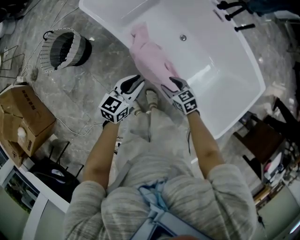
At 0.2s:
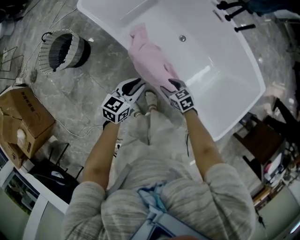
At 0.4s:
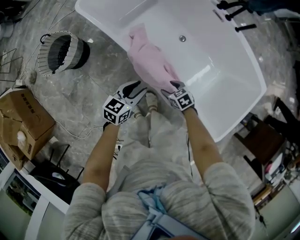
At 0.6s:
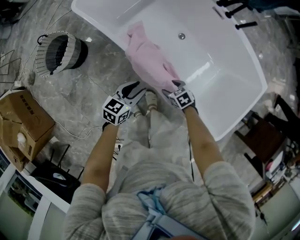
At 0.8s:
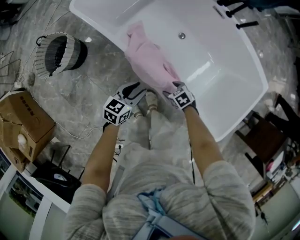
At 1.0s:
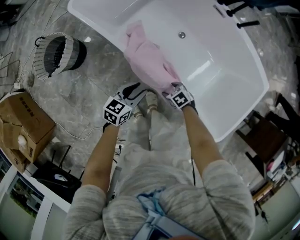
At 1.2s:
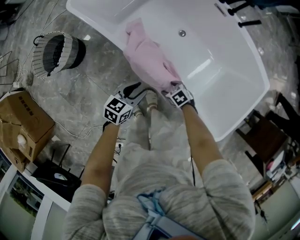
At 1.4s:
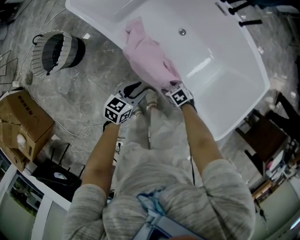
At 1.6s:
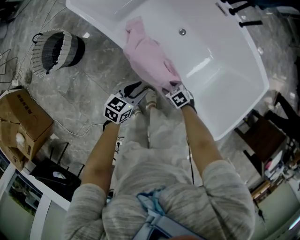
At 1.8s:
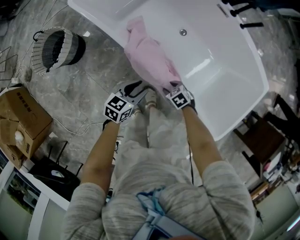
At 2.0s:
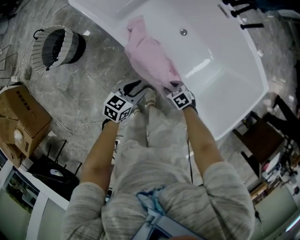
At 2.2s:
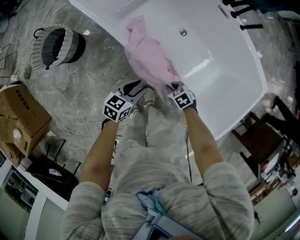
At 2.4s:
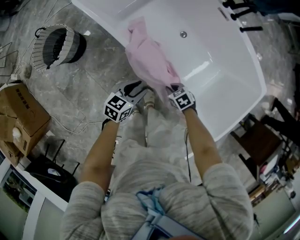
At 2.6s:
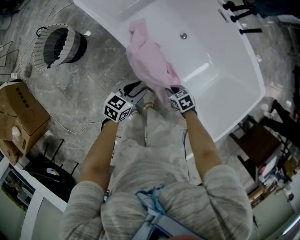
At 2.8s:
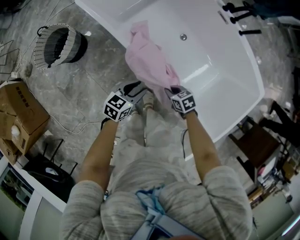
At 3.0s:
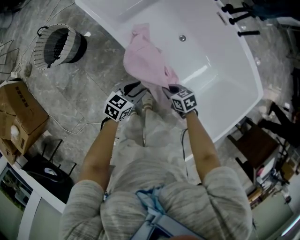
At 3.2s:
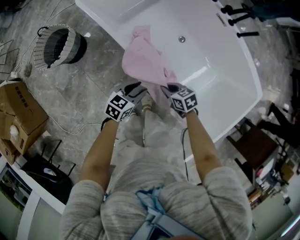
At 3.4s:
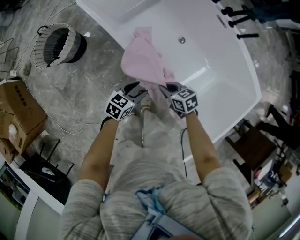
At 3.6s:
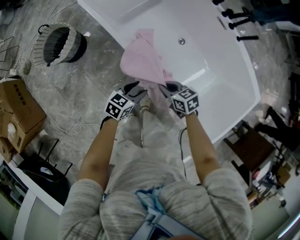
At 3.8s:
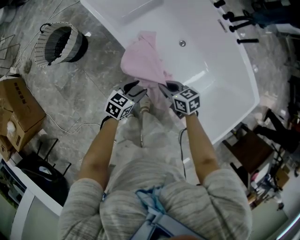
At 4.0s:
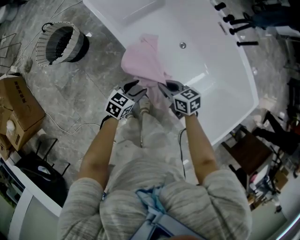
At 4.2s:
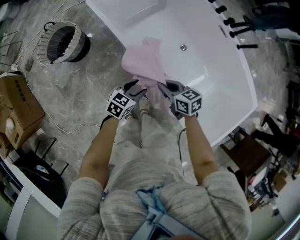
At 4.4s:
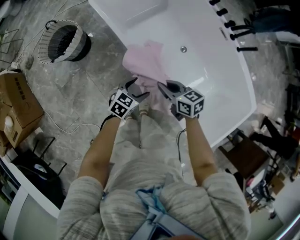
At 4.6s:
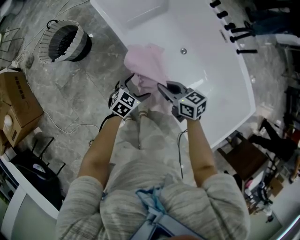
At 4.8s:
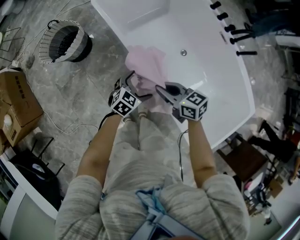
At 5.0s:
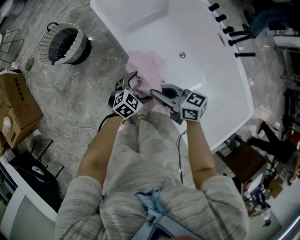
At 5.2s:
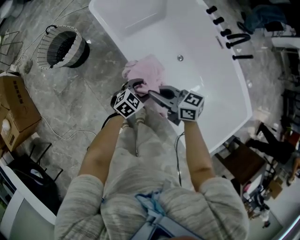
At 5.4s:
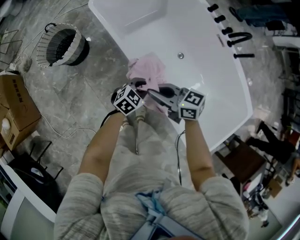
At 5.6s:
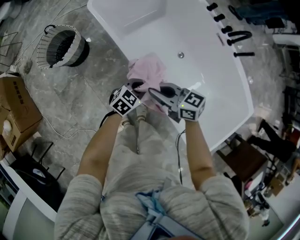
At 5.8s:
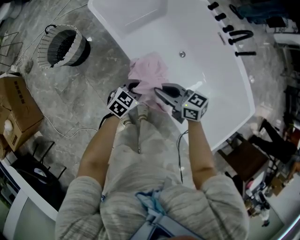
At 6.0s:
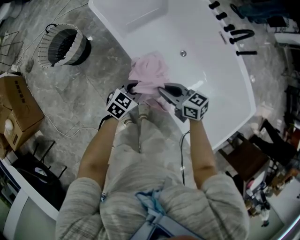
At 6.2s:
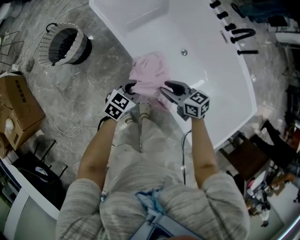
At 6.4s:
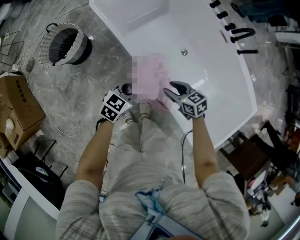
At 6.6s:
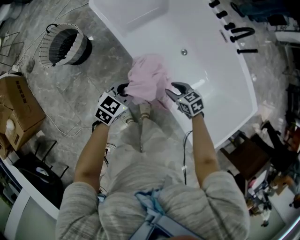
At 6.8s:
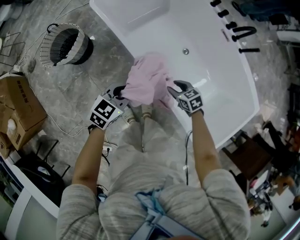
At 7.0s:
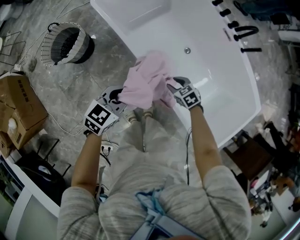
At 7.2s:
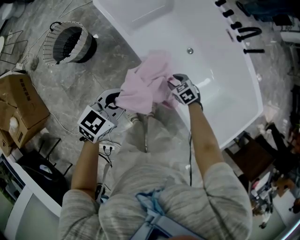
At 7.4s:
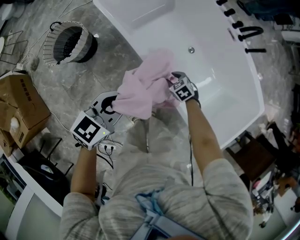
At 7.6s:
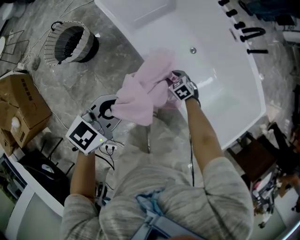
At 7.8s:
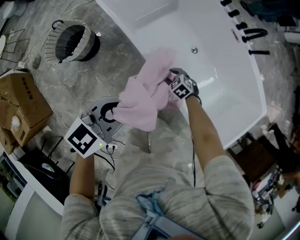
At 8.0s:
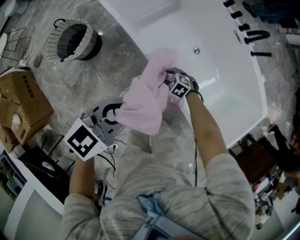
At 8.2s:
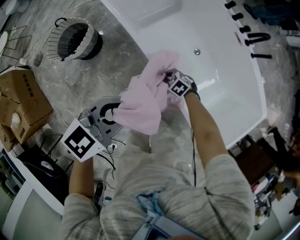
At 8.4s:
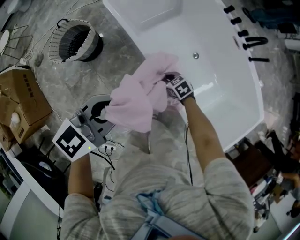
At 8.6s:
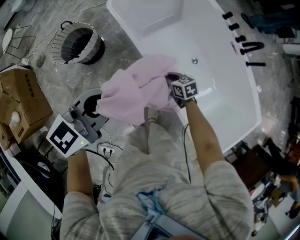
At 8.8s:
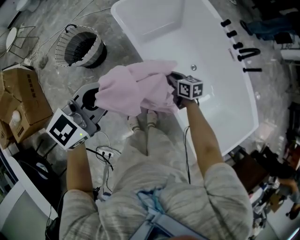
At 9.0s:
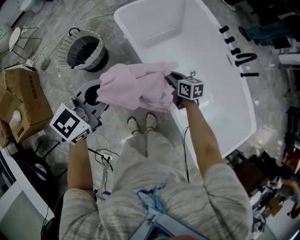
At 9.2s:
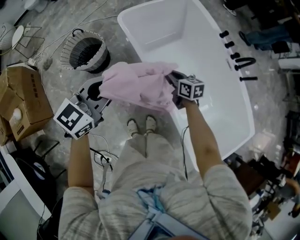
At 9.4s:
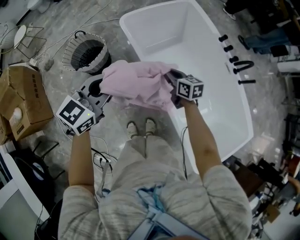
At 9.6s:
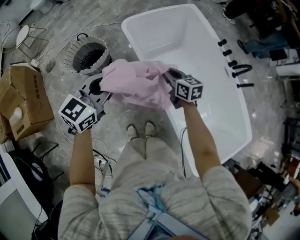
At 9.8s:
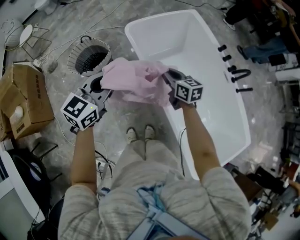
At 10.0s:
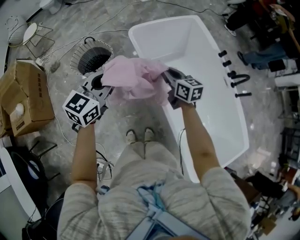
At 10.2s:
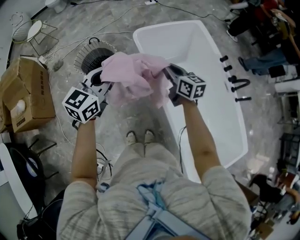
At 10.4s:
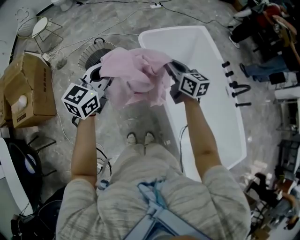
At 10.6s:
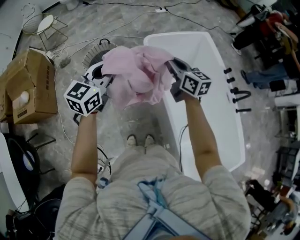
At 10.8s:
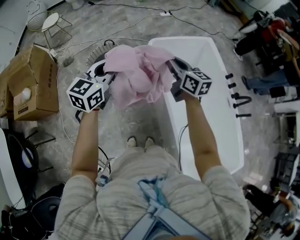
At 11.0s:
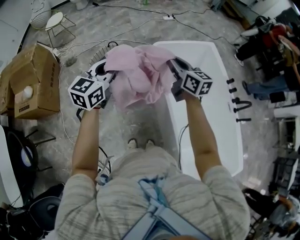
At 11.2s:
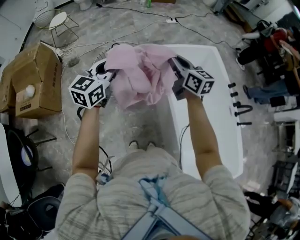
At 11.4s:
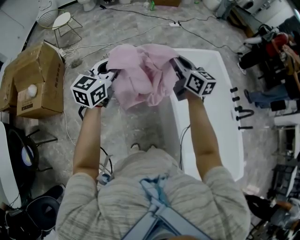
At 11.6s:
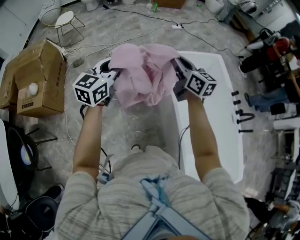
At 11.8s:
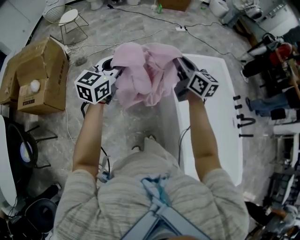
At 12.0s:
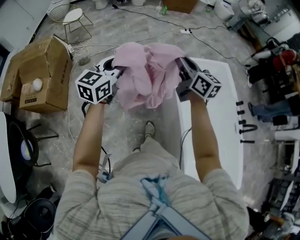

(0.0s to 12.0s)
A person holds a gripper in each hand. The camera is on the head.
0.0s - 1.6s: The grippers both shift downward by approximately 10 cm. The right gripper changes its angle by approximately 30 degrees.
1.6s - 3.0s: The right gripper moves upward, some 10 cm, and closes up.
3.0s - 4.4s: The left gripper opens, while the right gripper goes some 15 cm upward, and changes its angle by some 20 degrees.
4.4s - 6.0s: The left gripper closes up. The right gripper moves about 10 cm upward and comes back.
6.0s - 7.6s: The right gripper travels downward by roughly 20 cm, angles its fingers downward, by approximately 40 degrees, and opens. The left gripper goes roughly 20 cm upward.
7.6s - 9.0s: The left gripper travels upward by about 10 cm; the right gripper heads upward, covering some 20 cm, points its fingers some 30 degrees further upward, and closes up.
9.0s - 10.4s: The right gripper goes some 25 cm upward and to the left, and changes its angle by some 20 degrees. The left gripper moves to the left and upward, some 15 cm, and swivels some 30 degrees.
10.4s - 12.0s: The left gripper is displaced to the left and forward by roughly 20 cm; the right gripper goes roughly 25 cm to the left, upward and forward.

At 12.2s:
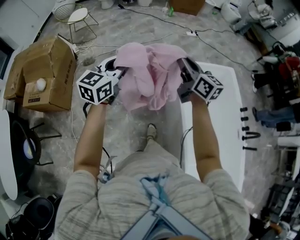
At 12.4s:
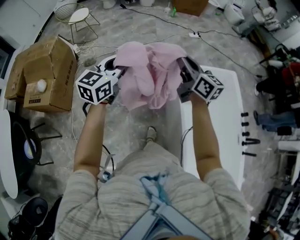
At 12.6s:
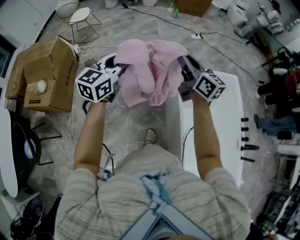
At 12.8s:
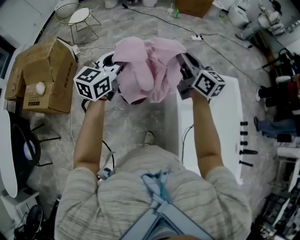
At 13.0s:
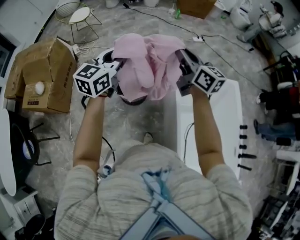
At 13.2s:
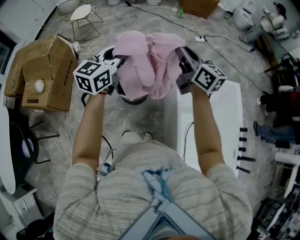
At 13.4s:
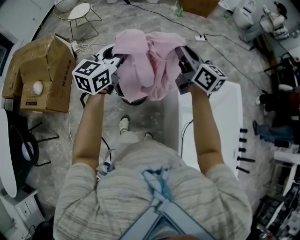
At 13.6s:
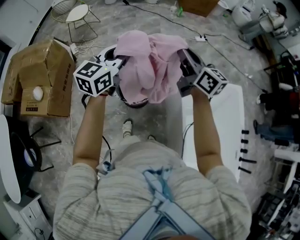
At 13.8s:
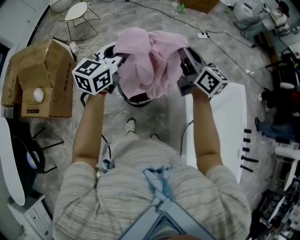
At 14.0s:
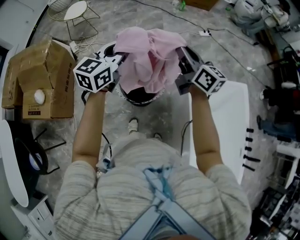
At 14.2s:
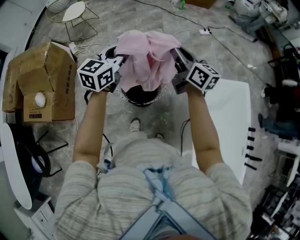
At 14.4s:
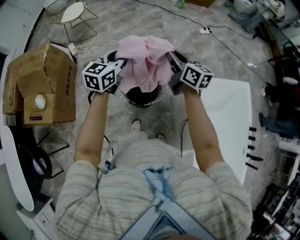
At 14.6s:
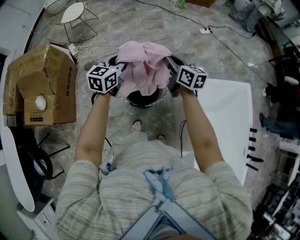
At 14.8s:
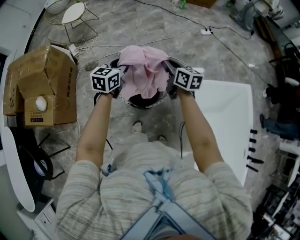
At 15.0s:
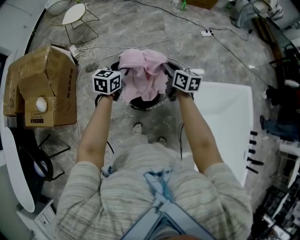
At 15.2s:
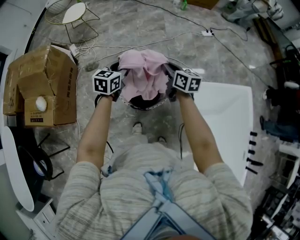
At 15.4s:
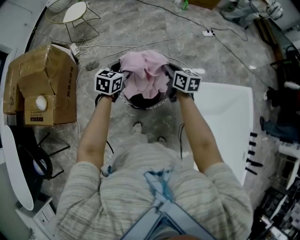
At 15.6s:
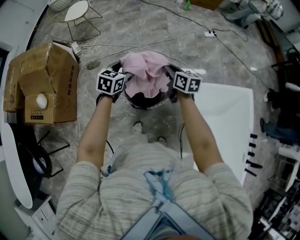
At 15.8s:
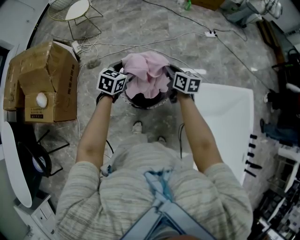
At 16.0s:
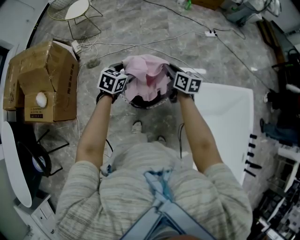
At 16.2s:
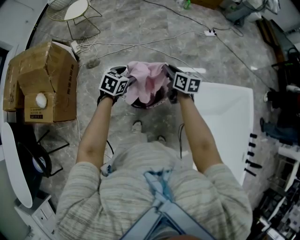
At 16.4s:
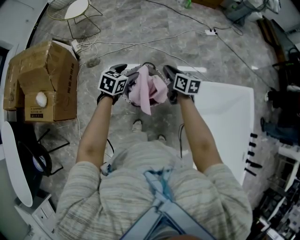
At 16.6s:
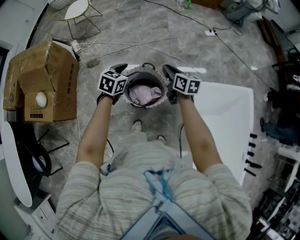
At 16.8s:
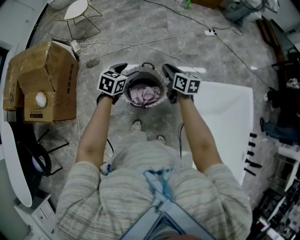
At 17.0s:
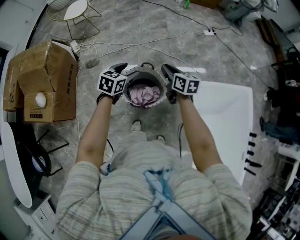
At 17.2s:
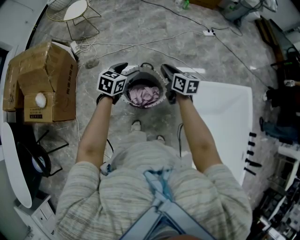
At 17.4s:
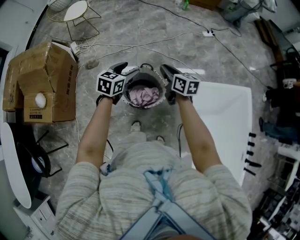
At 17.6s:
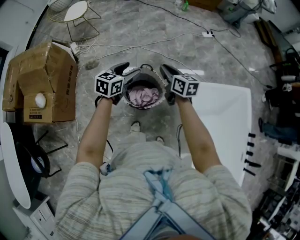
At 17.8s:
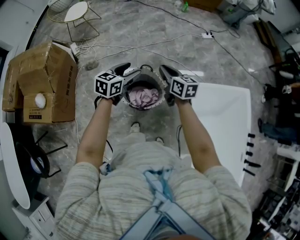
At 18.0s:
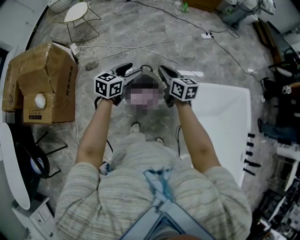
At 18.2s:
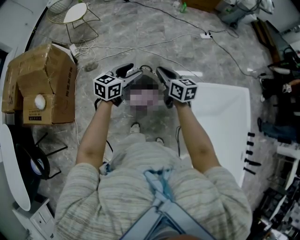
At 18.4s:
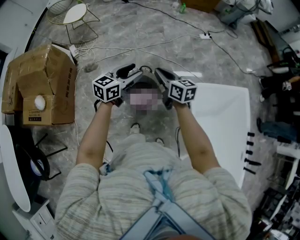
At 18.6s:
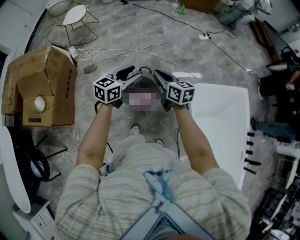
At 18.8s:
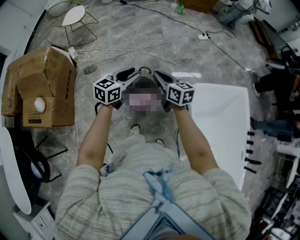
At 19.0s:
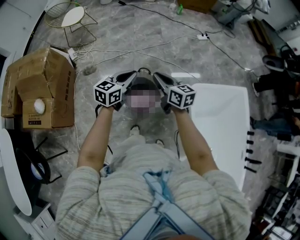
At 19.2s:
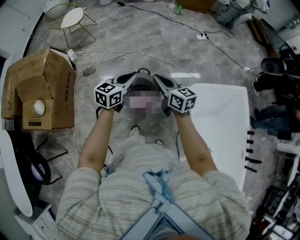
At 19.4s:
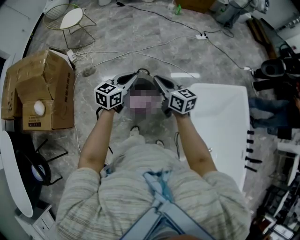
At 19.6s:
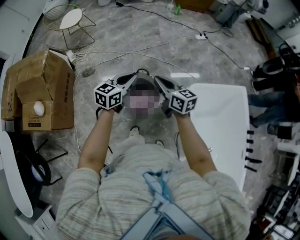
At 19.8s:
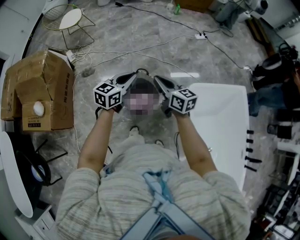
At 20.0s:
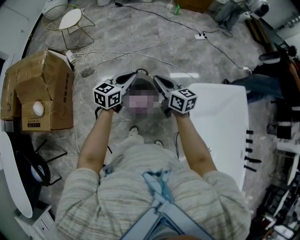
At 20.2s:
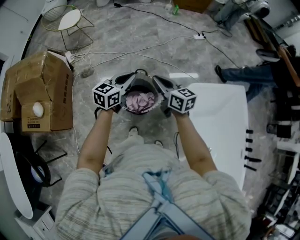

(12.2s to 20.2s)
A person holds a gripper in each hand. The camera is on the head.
12.2s - 13.8s: Both grippers travel together forward, about 25 cm.
13.8s - 15.4s: The two grippers go about 25 cm downward. The right gripper changes its angle by some 30 degrees, while the left gripper turns by approximately 30 degrees.
15.4s - 17.0s: There are only small adjustments of the grippers.
17.0s - 18.6s: The right gripper moves some 10 cm; the left gripper travels upward by some 5 cm, and changes its angle by some 20 degrees.
18.6s - 20.2s: The left gripper closes its fingers.

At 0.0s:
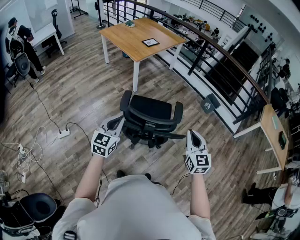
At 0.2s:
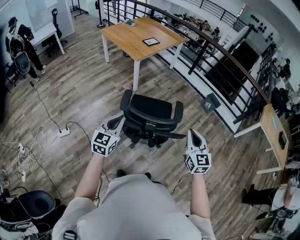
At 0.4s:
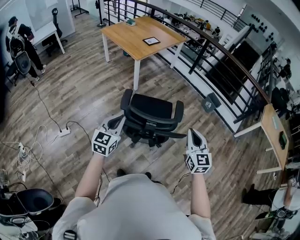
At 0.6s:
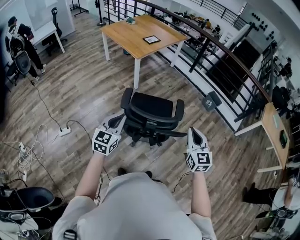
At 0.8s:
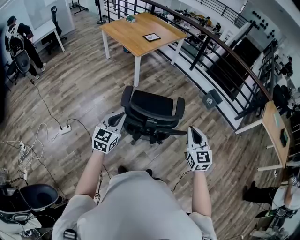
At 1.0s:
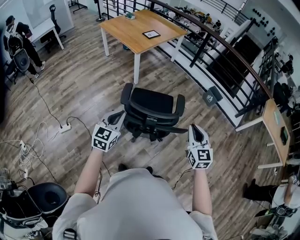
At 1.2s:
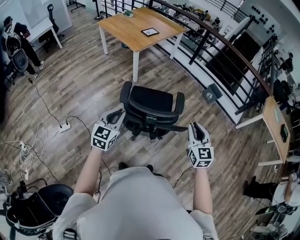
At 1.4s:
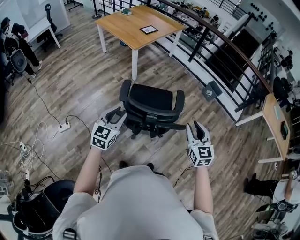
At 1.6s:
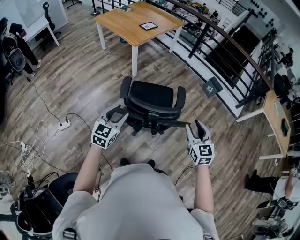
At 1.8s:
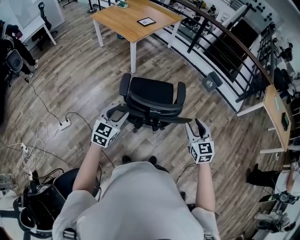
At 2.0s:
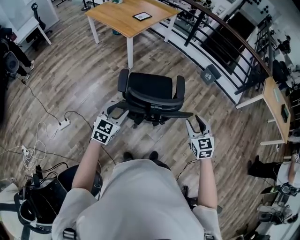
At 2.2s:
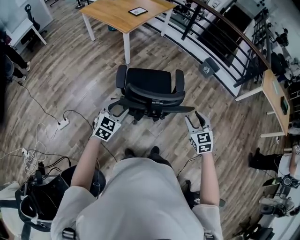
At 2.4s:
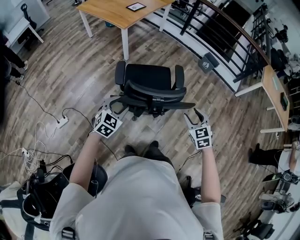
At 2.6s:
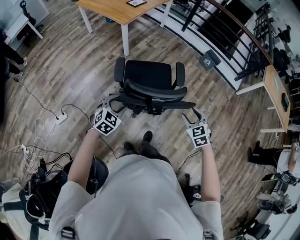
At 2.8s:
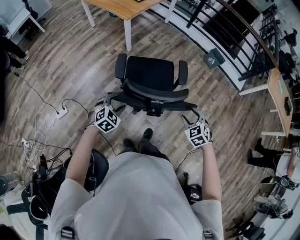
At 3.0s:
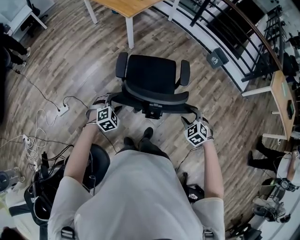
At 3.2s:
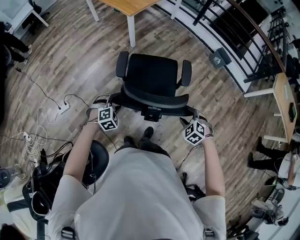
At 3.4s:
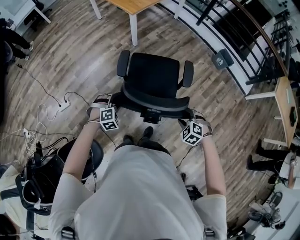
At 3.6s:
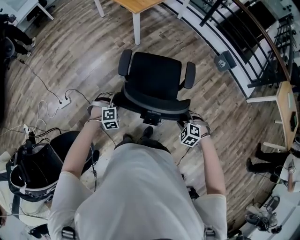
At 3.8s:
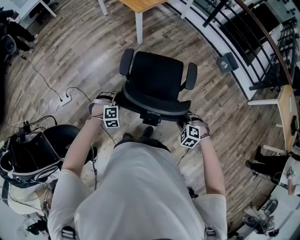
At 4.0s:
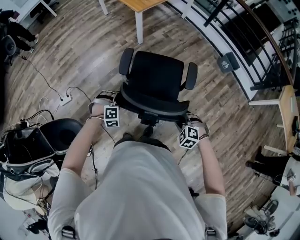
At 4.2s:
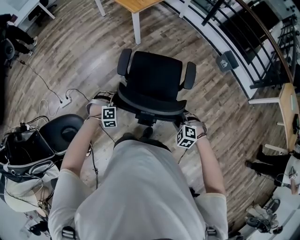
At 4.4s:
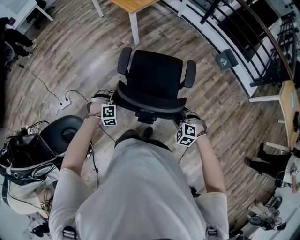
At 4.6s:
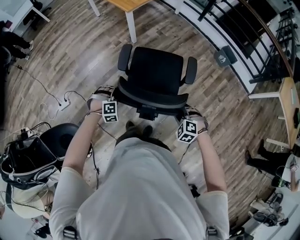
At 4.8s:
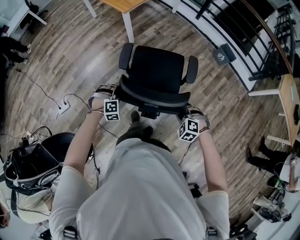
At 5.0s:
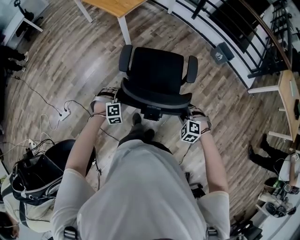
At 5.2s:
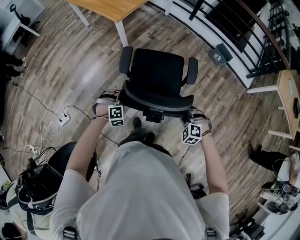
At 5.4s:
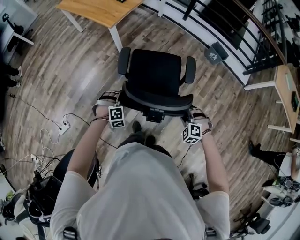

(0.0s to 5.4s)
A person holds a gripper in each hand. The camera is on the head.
0.0s - 1.4s: The left gripper opens its fingers; the right gripper opens its fingers.
1.4s - 2.8s: Both grippers travel together downward, some 15 cm. The left gripper angles its fingers downward, by some 30 degrees, and opens up; the right gripper tilts its fingers some 30 degrees downward, and opens.
2.8s - 4.0s: The grippers both shift downward by some 10 cm. The right gripper turns by approximately 40 degrees; the left gripper changes its angle by approximately 40 degrees, and closes.
4.0s - 5.4s: Both grippers travel together forward and to the right, about 20 cm.
